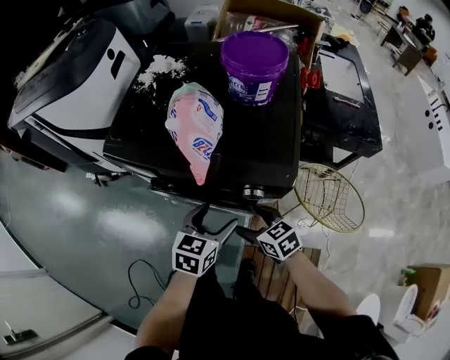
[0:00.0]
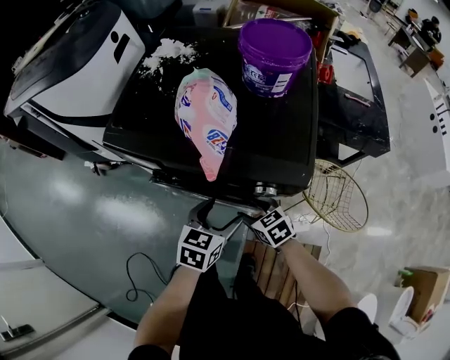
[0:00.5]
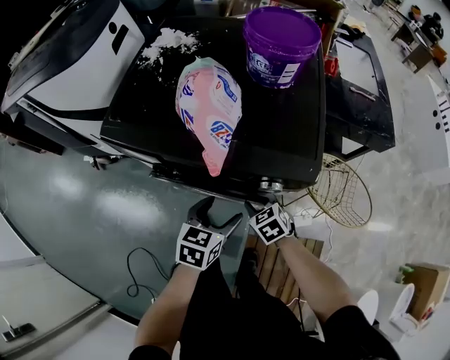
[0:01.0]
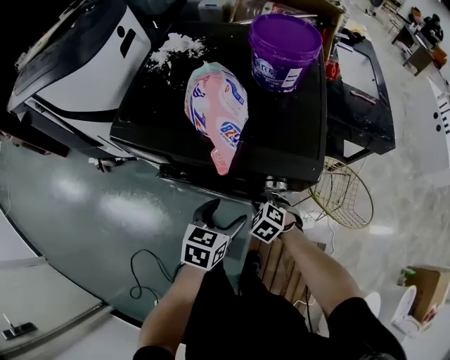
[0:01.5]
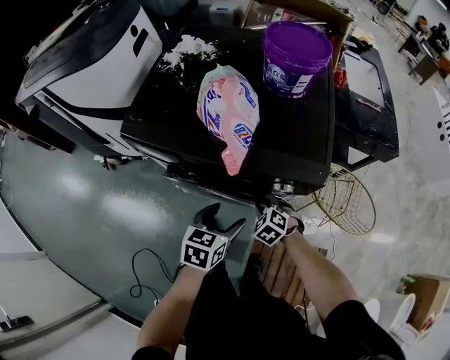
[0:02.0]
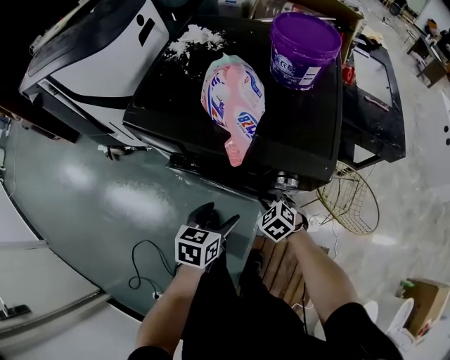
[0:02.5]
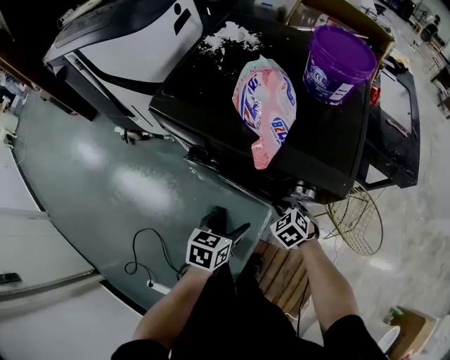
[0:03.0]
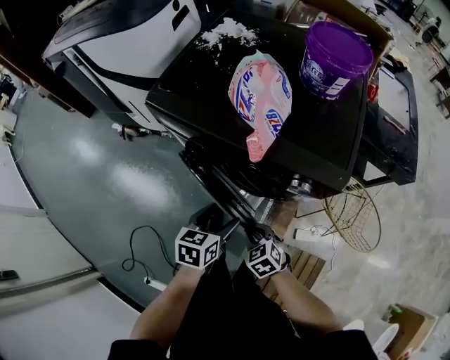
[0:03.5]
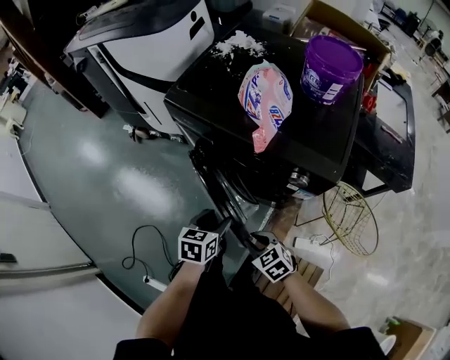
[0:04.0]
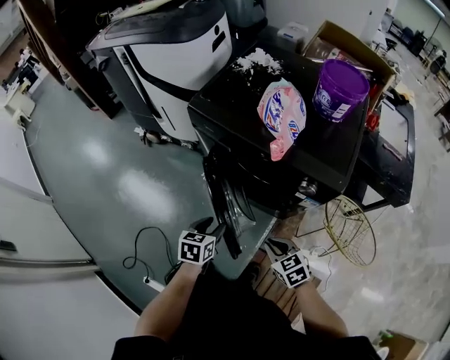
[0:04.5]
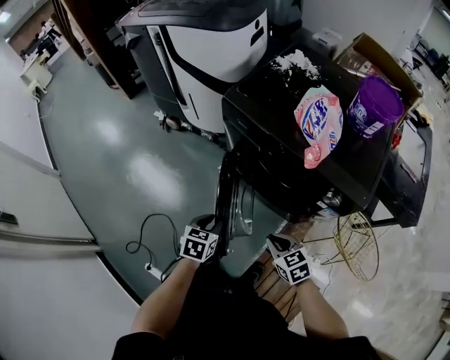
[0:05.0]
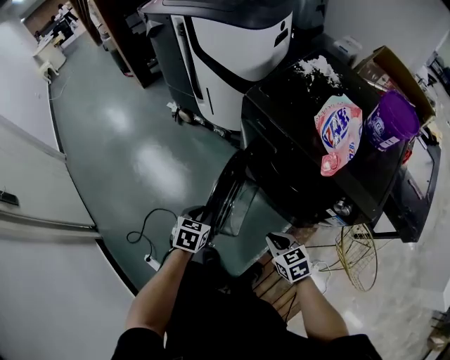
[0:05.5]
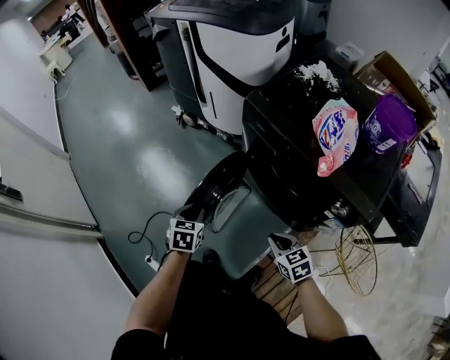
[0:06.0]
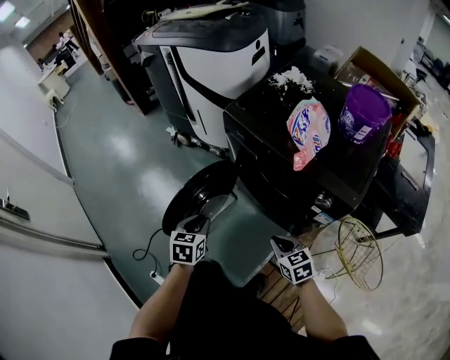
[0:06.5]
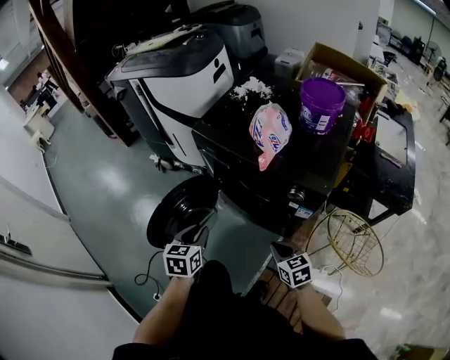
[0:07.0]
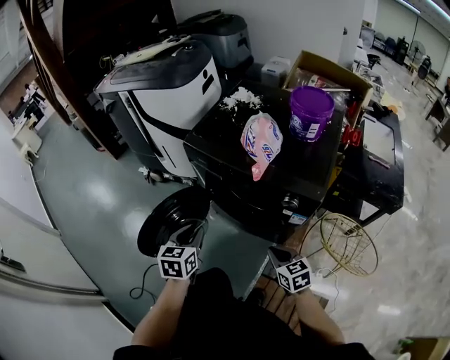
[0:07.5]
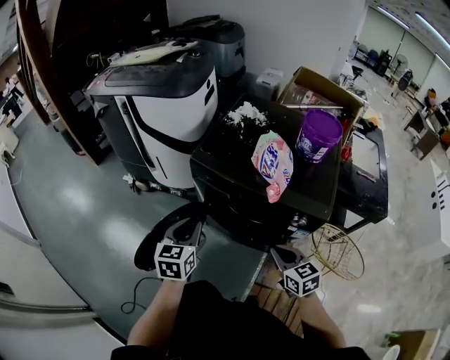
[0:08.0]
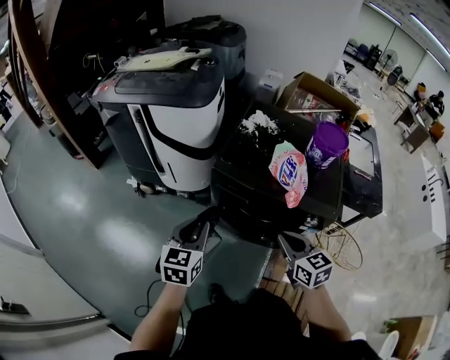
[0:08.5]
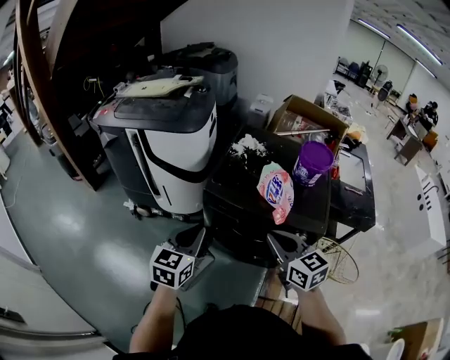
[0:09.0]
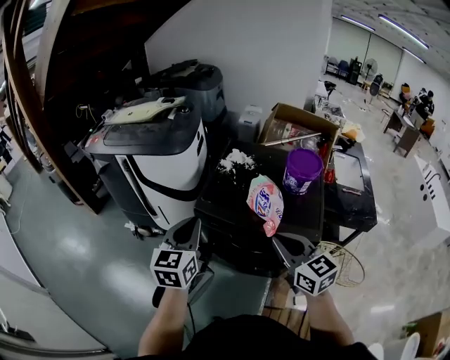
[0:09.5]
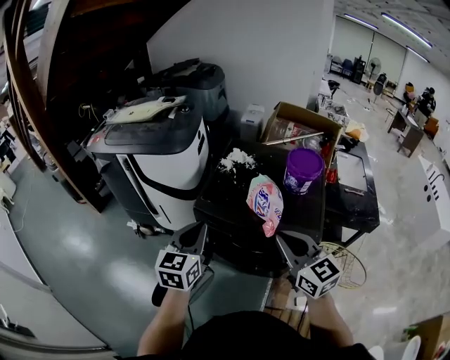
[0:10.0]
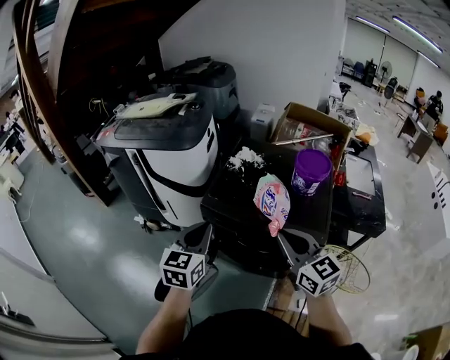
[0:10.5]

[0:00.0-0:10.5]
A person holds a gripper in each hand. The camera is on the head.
0:00.0 to 0:02.0: The right gripper travels downward by some 10 cm, rotates about 40 degrees, and closes, while the left gripper changes place by approximately 5 cm.
0:02.0 to 0:04.0: The left gripper ends up about 10 cm from where it was, and rotates approximately 20 degrees; the right gripper ends up some 20 cm from where it was, and turns by roughly 30 degrees.
0:04.0 to 0:06.5: The right gripper goes approximately 5 cm upward, and goes to the left and returns, about 5 cm each way; the left gripper moves to the left, approximately 15 cm, and turns by approximately 20 degrees.
0:06.5 to 0:08.5: Both grippers travel together upward, roughly 25 cm. The left gripper swivels approximately 30 degrees. Meanwhile the right gripper rotates some 30 degrees.
0:08.5 to 0:10.5: The right gripper heads upward, covering about 15 cm, and changes its angle by approximately 20 degrees, while the left gripper travels upward and to the right by approximately 15 cm.

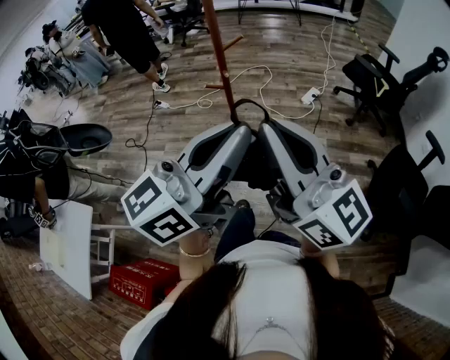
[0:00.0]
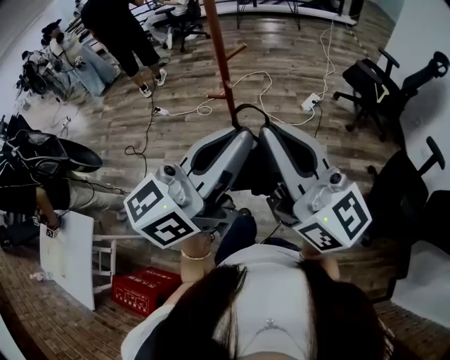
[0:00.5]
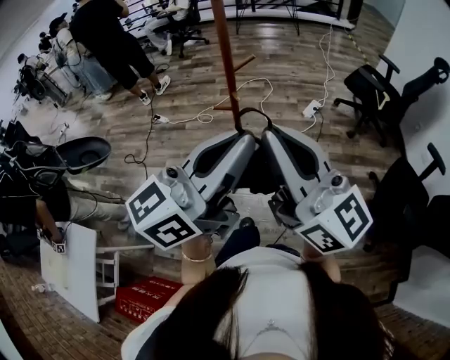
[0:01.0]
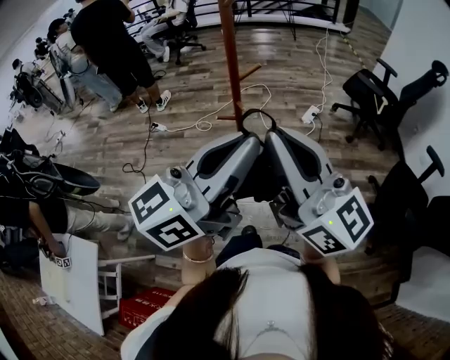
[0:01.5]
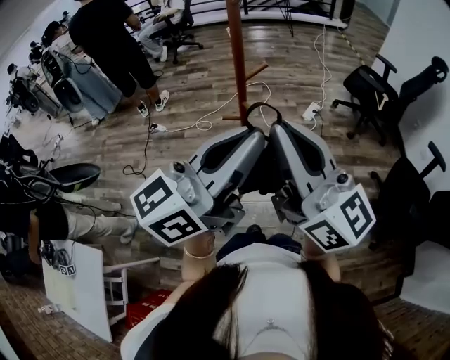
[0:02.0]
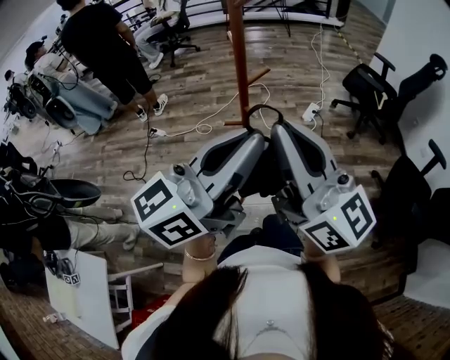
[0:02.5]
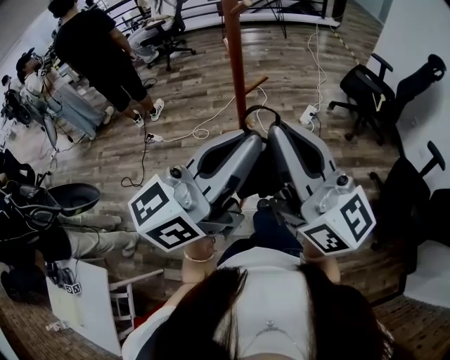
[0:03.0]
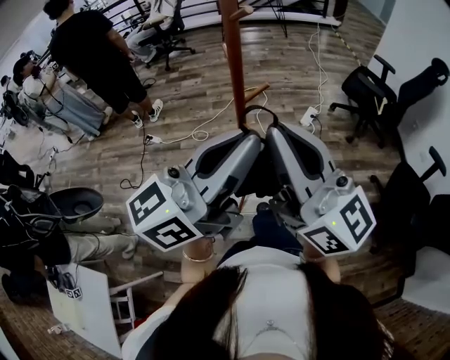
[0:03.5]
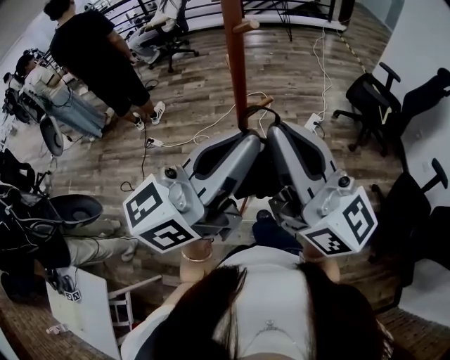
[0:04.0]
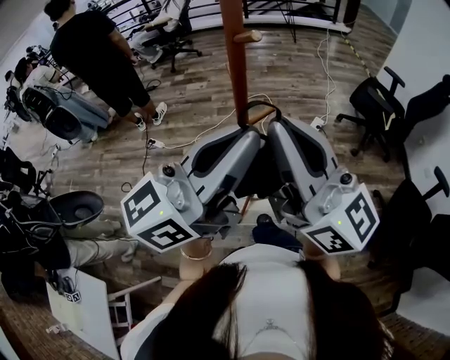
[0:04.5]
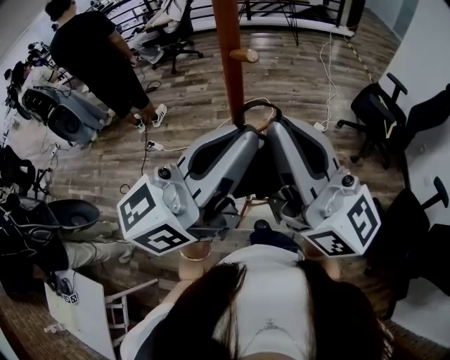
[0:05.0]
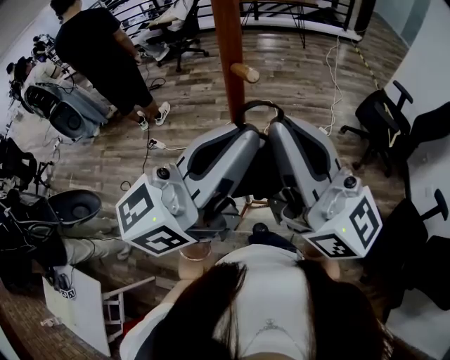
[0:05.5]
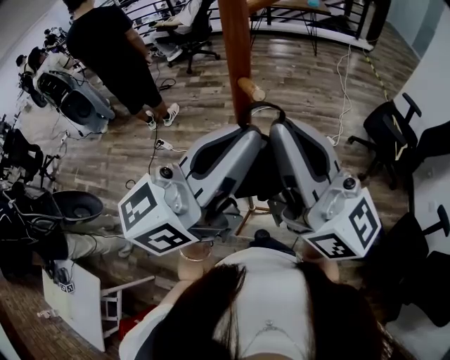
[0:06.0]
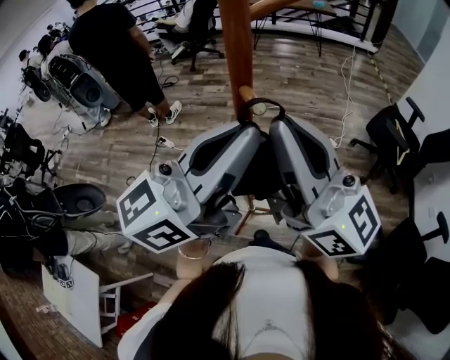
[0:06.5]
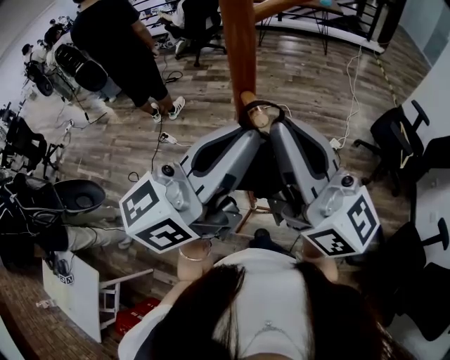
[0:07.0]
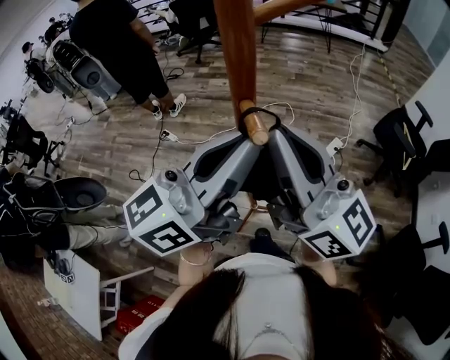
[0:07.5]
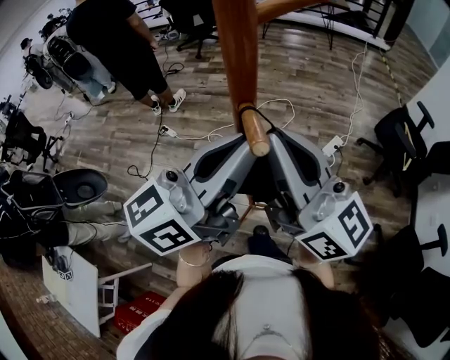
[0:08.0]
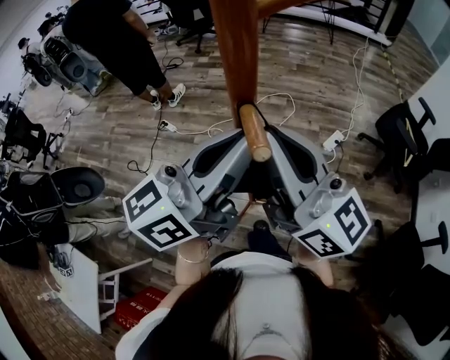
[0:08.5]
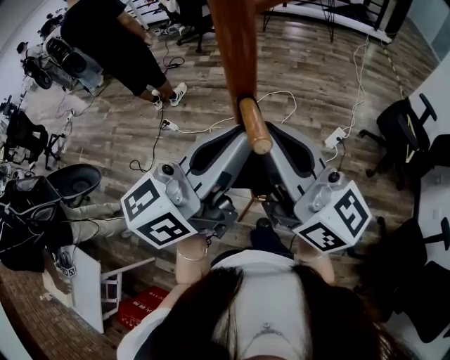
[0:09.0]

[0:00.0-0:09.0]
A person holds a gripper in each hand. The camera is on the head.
0:00.0 to 0:02.0: The grippers both shift forward and to the left by roughly 15 cm.
0:02.0 to 0:04.5: The grippers both shift forward by some 15 cm.
0:04.5 to 0:07.0: Both grippers move forward, about 15 cm.
0:07.0 to 0:09.0: The left gripper shifts by about 5 cm; the right gripper goes about 5 cm downward.

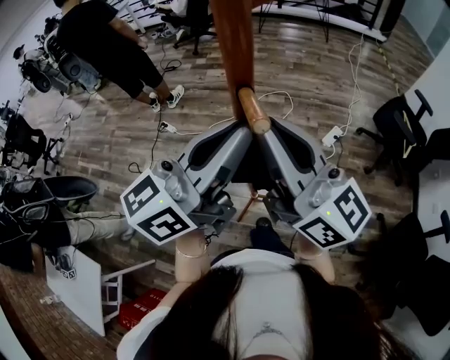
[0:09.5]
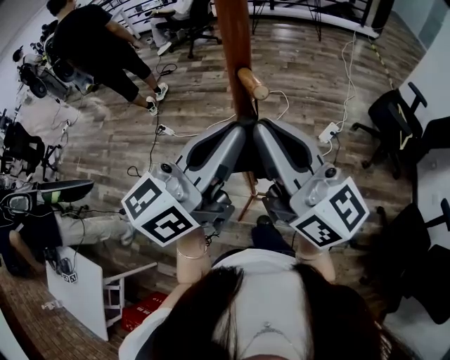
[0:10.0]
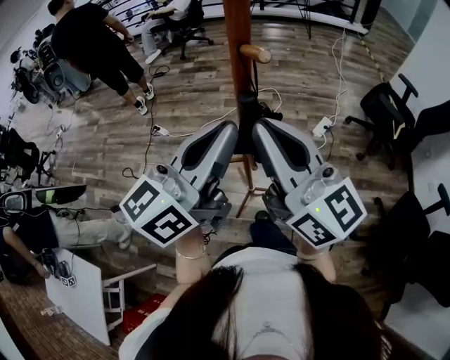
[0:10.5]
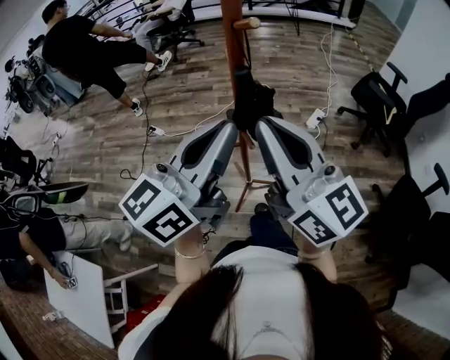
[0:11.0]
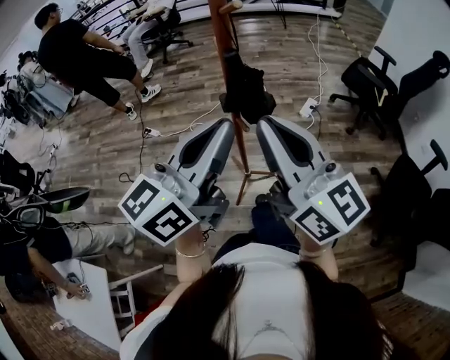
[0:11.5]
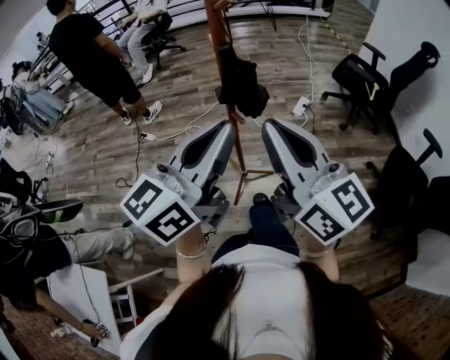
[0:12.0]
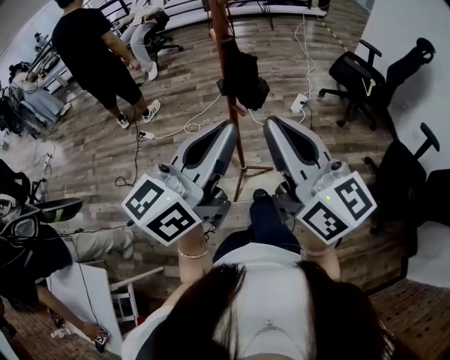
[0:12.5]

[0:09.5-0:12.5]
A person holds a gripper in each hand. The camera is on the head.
0:09.5 to 0:11.0: The grippers both shift backward by about 15 cm.
0:11.0 to 0:12.5: The grippers both shift backward by roughly 10 cm.

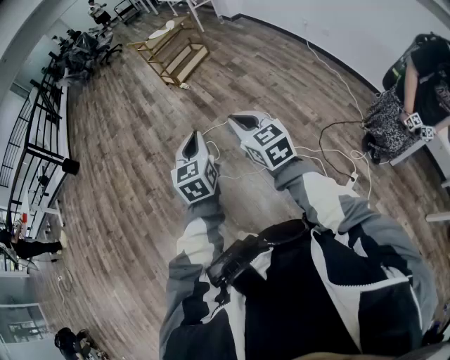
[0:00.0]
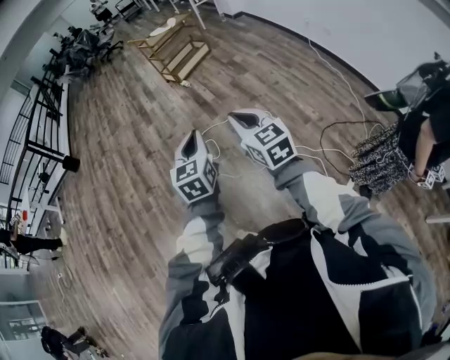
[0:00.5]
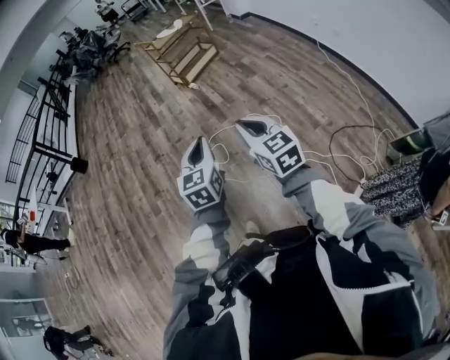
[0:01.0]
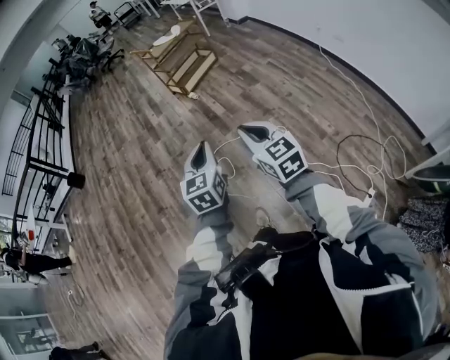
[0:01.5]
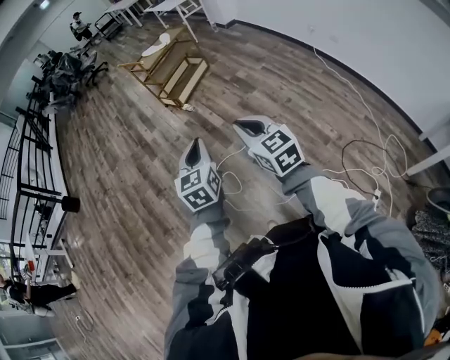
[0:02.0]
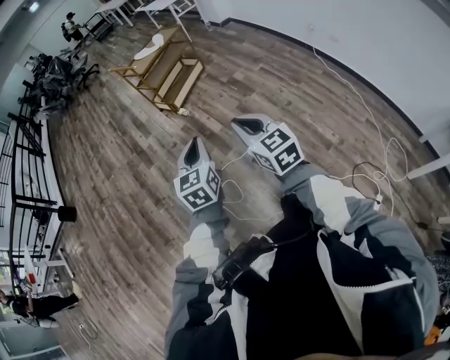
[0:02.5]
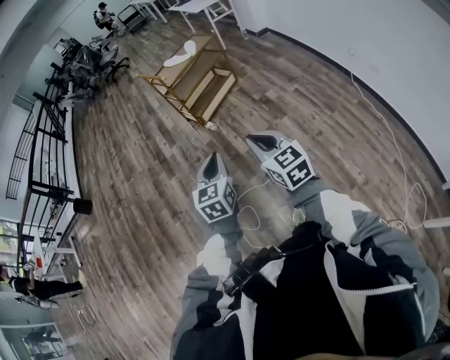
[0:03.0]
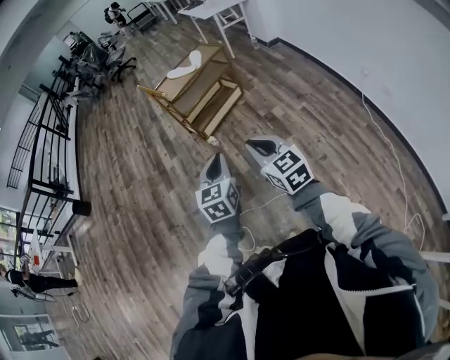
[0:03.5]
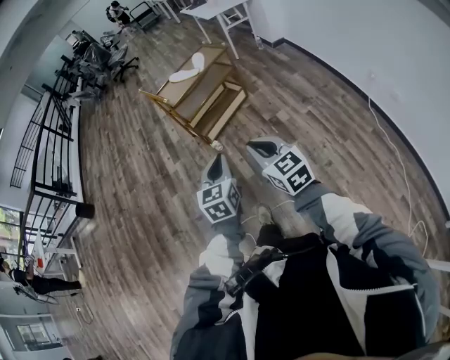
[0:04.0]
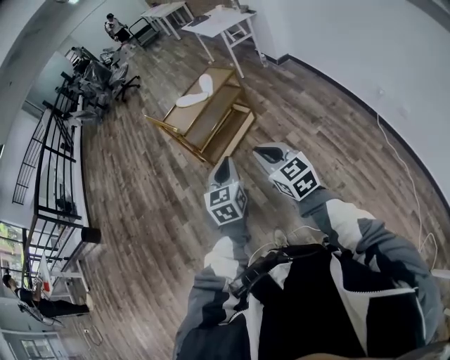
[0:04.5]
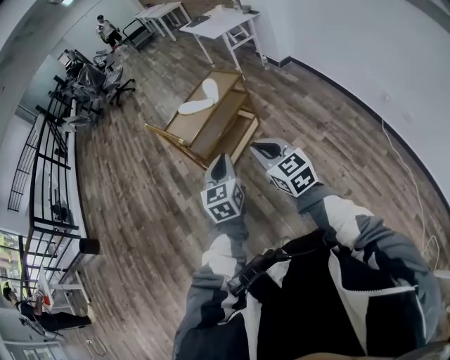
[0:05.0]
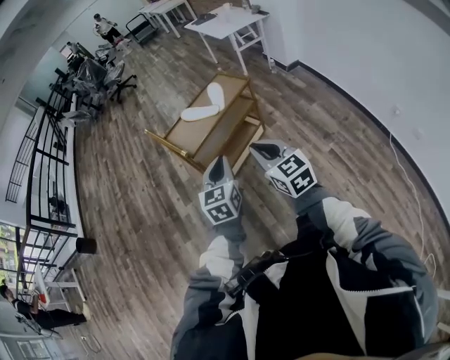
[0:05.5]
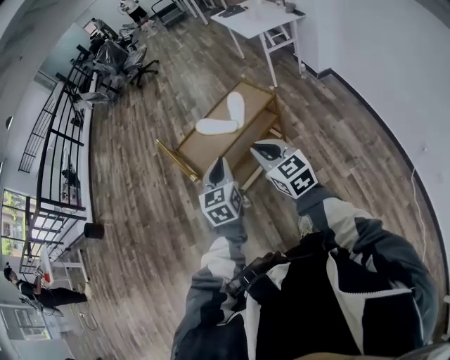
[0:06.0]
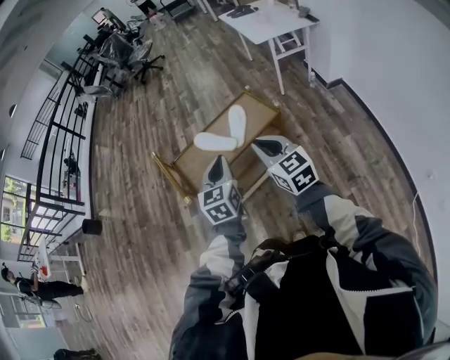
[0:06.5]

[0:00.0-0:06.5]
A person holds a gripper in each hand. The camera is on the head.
0:00.0 to 0:02.0: The grippers both shift forward by about 30 cm.
0:02.0 to 0:04.5: The two grippers travel together, forward, approximately 60 cm.
0:04.5 to 0:06.5: The pair of grippers is taken forward, roughly 50 cm.
